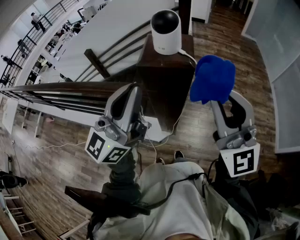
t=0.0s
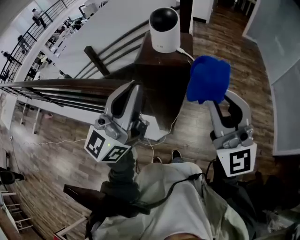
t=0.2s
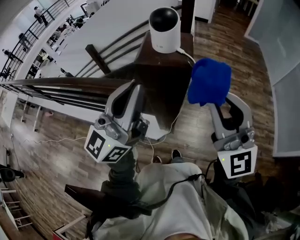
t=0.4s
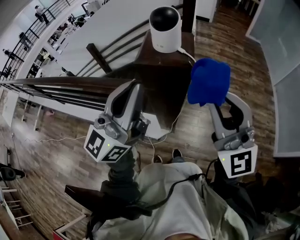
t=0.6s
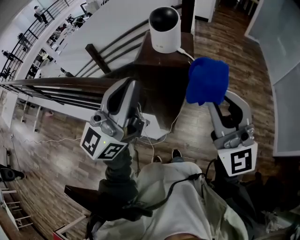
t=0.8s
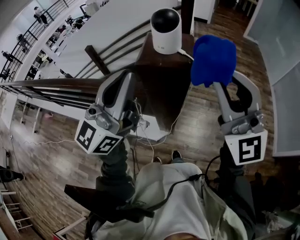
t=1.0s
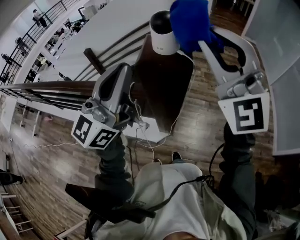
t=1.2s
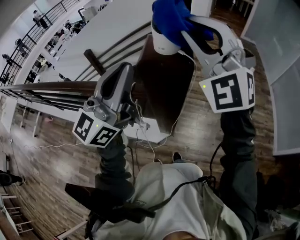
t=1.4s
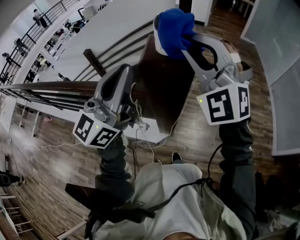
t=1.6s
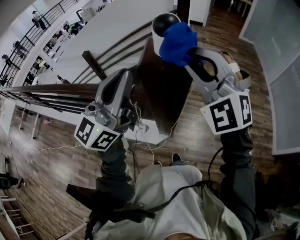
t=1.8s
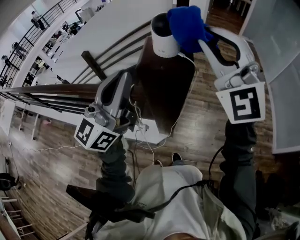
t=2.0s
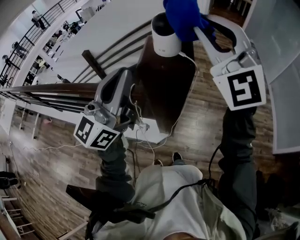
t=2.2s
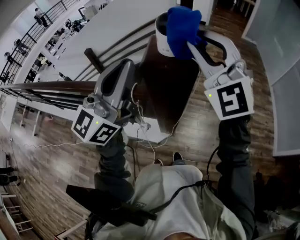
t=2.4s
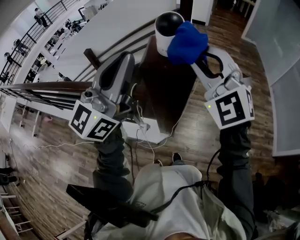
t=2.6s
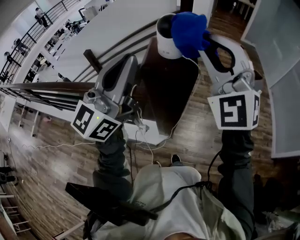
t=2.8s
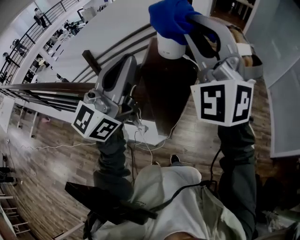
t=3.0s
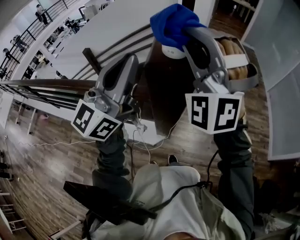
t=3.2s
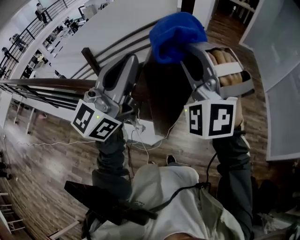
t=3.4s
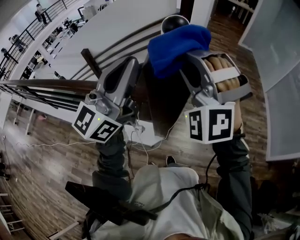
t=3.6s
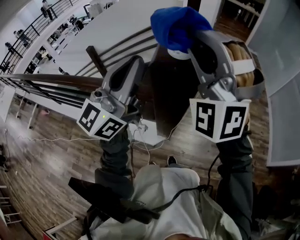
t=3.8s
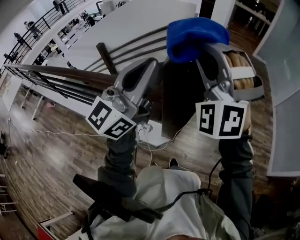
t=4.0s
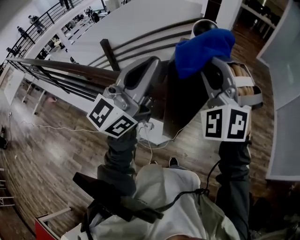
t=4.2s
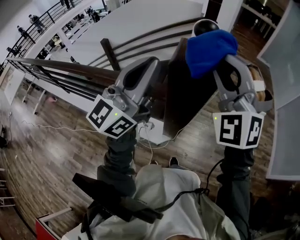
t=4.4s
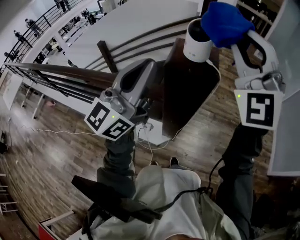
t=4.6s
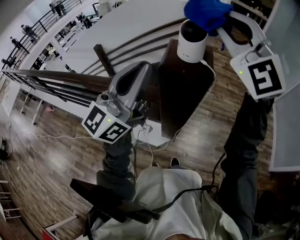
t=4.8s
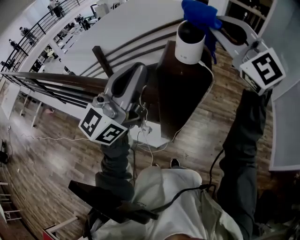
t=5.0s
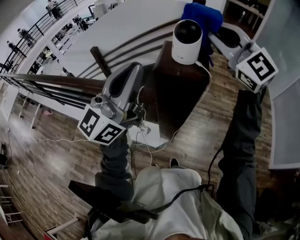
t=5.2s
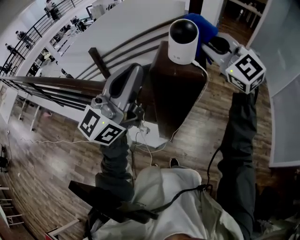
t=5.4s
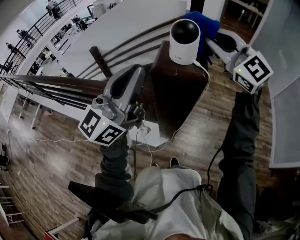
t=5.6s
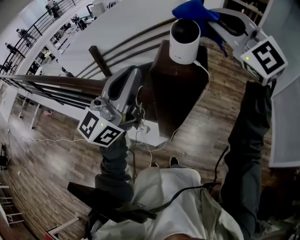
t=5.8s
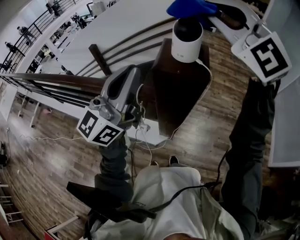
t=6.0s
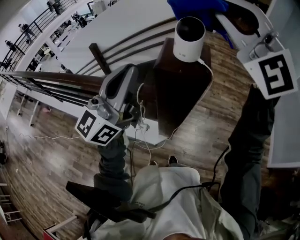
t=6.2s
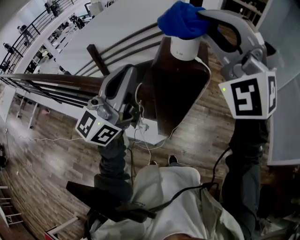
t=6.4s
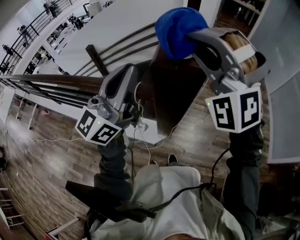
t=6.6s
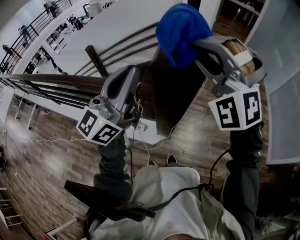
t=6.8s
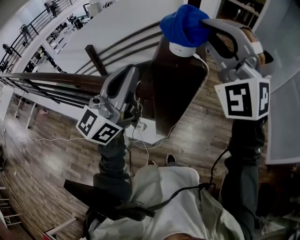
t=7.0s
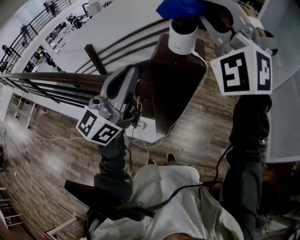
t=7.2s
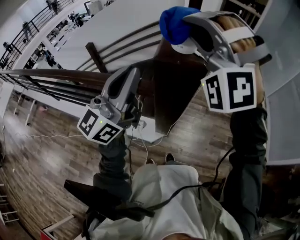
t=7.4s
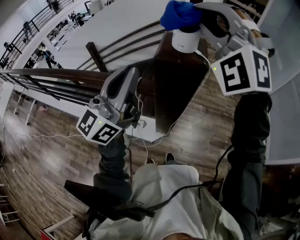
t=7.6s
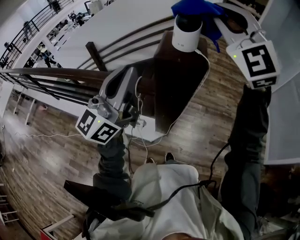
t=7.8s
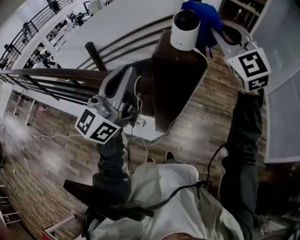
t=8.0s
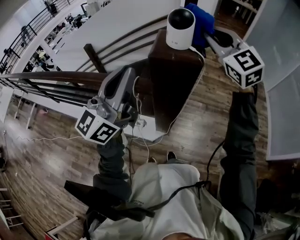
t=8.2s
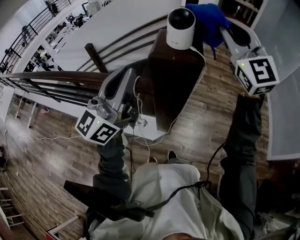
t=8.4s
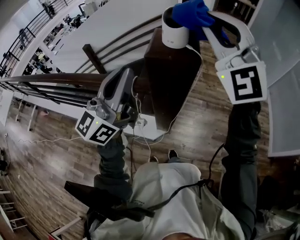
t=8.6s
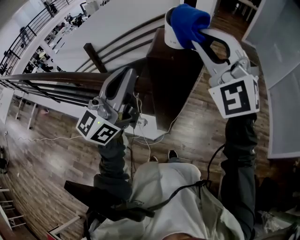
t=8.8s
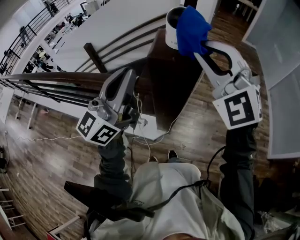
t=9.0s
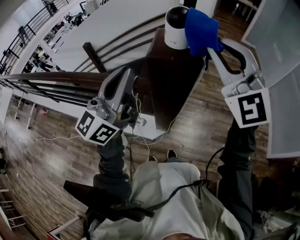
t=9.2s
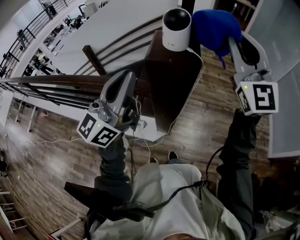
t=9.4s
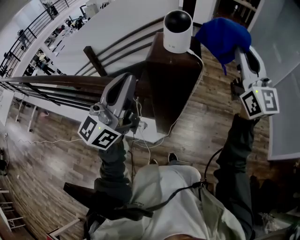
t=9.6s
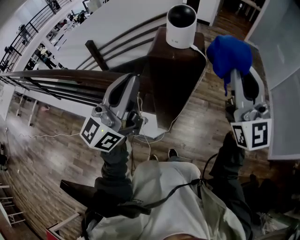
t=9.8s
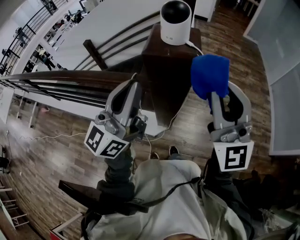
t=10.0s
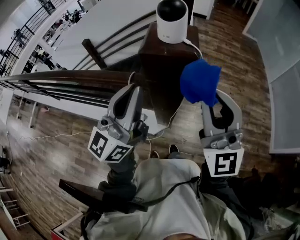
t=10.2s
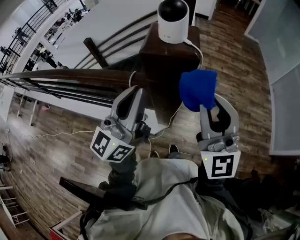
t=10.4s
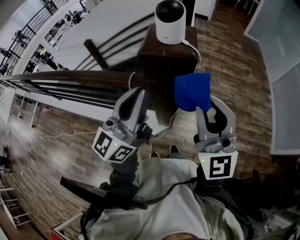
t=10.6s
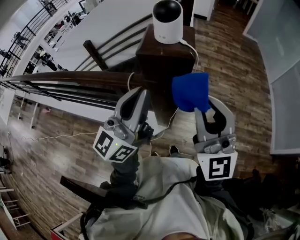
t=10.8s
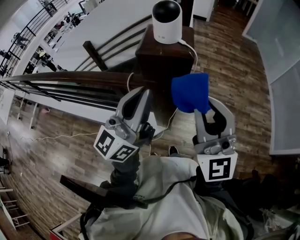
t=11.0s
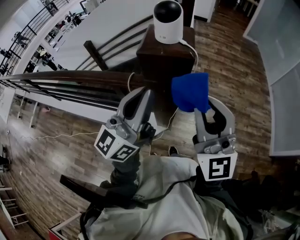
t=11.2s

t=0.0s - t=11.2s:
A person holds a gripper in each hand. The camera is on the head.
t=0.0s - t=1.6s: The right gripper goes approximately 15 cm forward and to the left, and swivels about 40 degrees. The left gripper changes place by roughly 5 cm.
t=1.6s - t=3.2s: The right gripper swings up and down, roughly 10 cm each way, with 2 reversals, and turns by approximately 20 degrees.
t=3.2s - t=4.8s: The right gripper swings up and down, about 10 cm each way, with 3 reversals, and swivels about 40 degrees.
t=4.8s - t=6.4s: The right gripper swings up and down, roughly 15 cm each way, with 2 reversals, and rotates roughly 30 degrees.
t=6.4s - t=8.0s: The right gripper swings up and down, roughly 10 cm each way, with 4 reversals, and changes its angle by about 40 degrees.
t=8.0s - t=9.6s: The right gripper heads to the right, covering roughly 10 cm, and swivels about 40 degrees.
t=9.6s - t=11.2s: The right gripper moves backward, to the left and downward, approximately 20 cm; the left gripper is displaced to the right by about 5 cm.

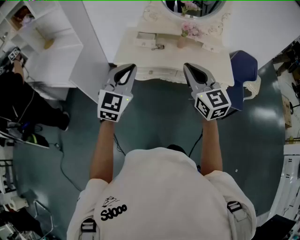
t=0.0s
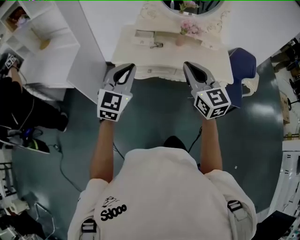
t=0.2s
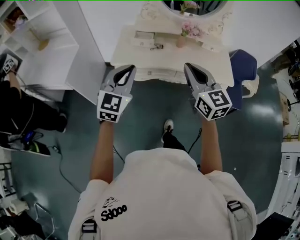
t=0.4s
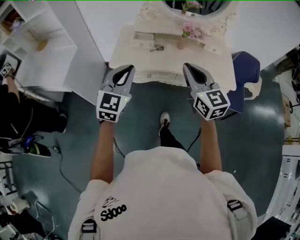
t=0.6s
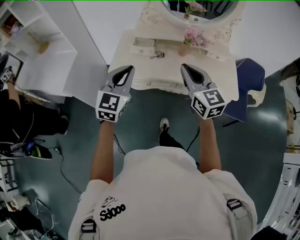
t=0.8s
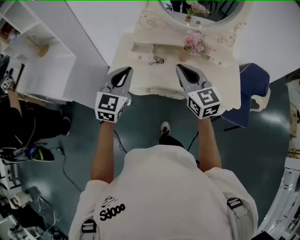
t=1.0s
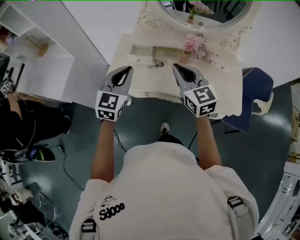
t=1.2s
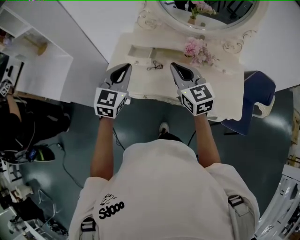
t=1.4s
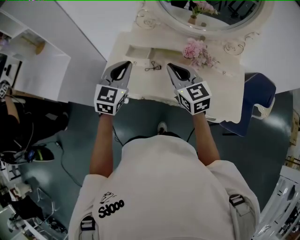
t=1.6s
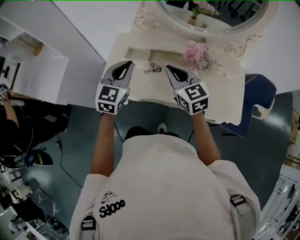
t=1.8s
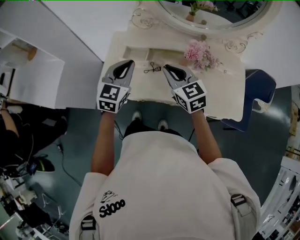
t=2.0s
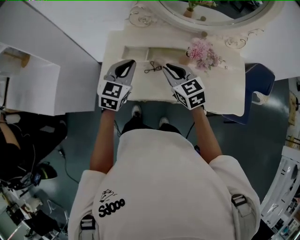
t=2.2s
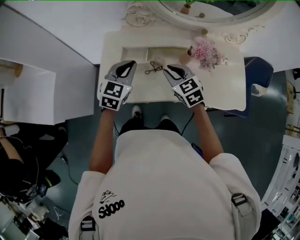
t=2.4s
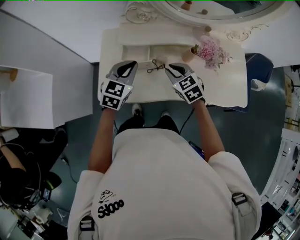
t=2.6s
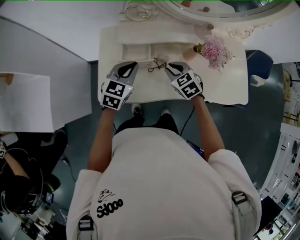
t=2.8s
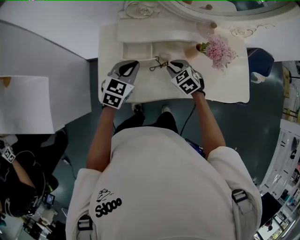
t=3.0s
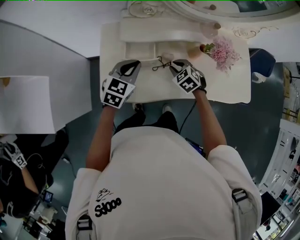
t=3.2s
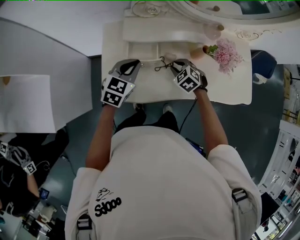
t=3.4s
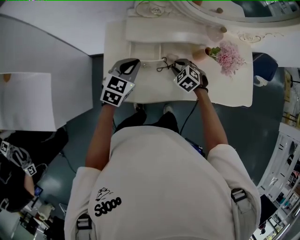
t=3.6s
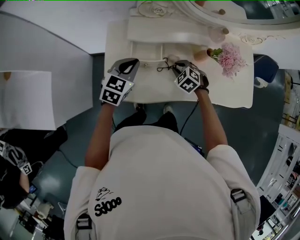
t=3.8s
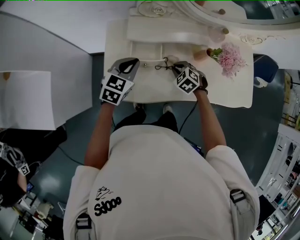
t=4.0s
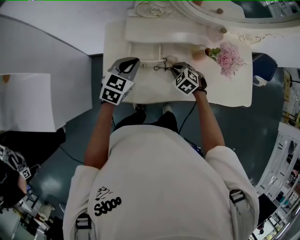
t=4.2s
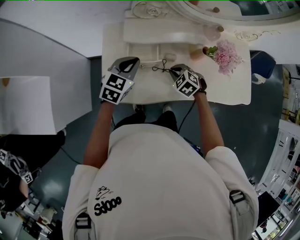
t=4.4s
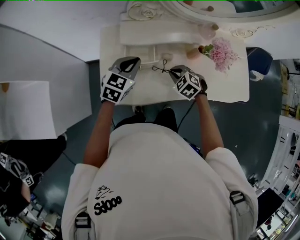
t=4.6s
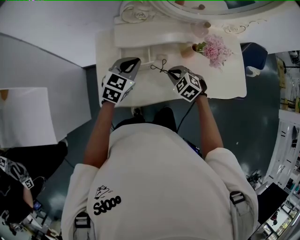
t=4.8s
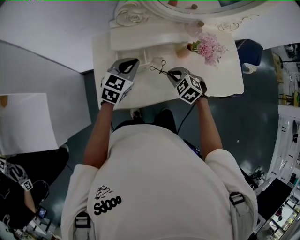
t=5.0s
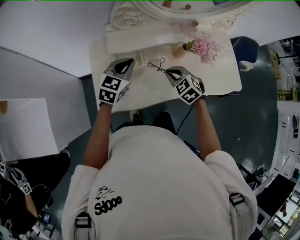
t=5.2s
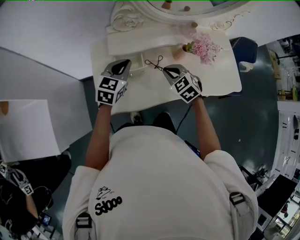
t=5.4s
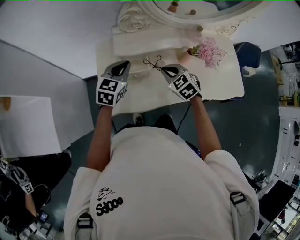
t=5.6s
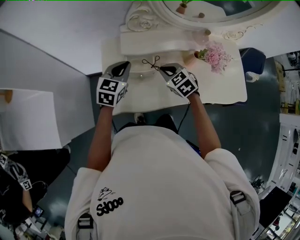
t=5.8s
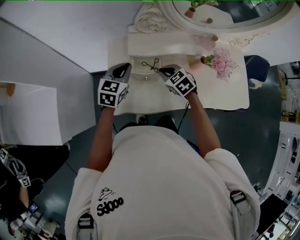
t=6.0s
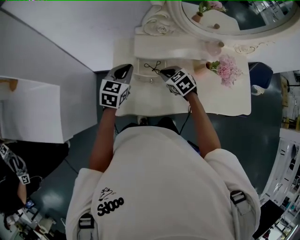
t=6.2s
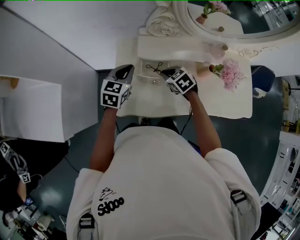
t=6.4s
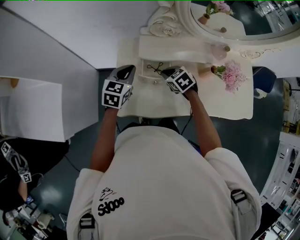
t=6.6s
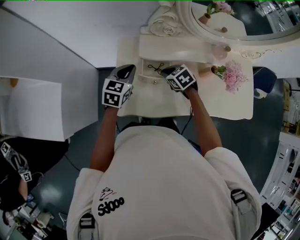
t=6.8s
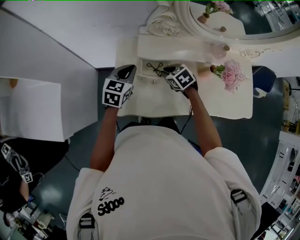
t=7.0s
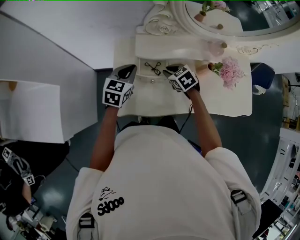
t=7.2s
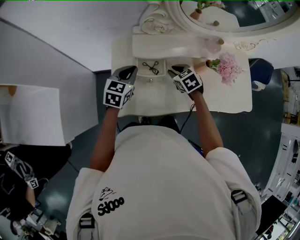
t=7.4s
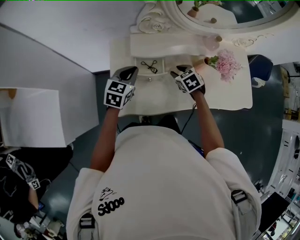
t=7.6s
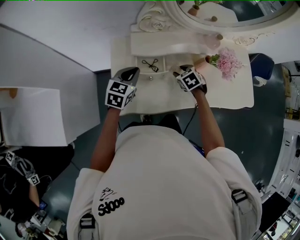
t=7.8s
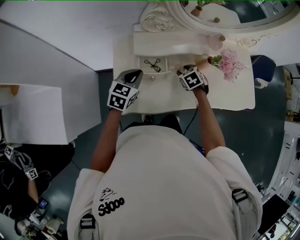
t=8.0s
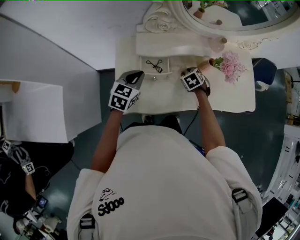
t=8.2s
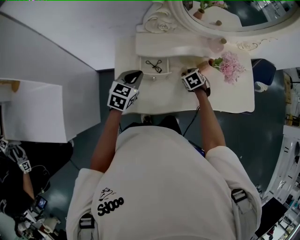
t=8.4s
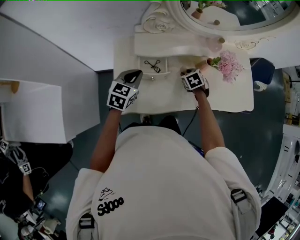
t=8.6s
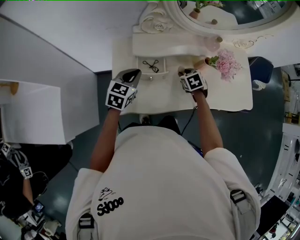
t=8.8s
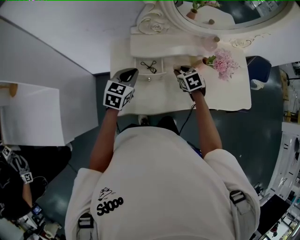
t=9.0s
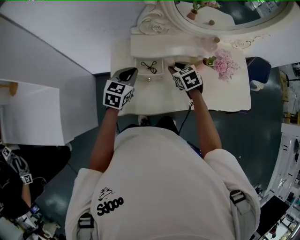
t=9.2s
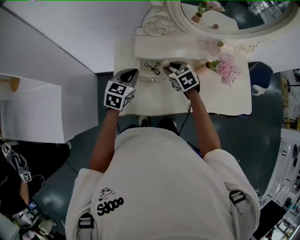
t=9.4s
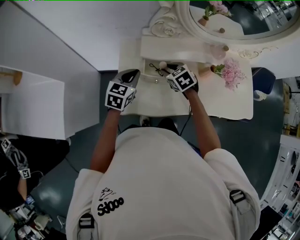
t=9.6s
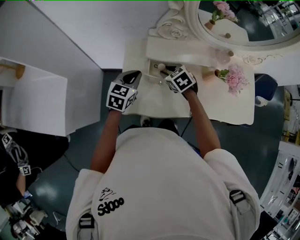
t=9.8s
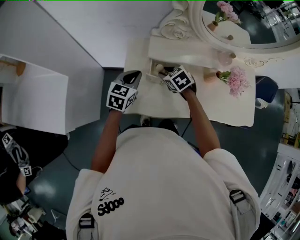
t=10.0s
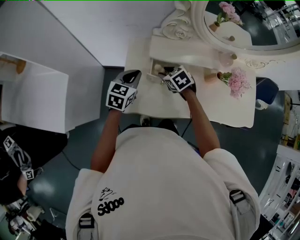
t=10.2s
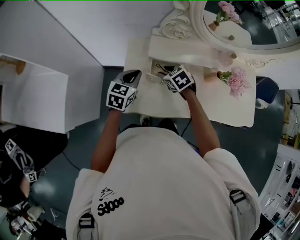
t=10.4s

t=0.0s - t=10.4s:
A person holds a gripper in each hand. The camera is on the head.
t=0.0s - t=1.4s: The two grippers go approximately 30 cm forward.
t=1.4s - t=3.0s: The two grippers go some 25 cm downward and forward. The right gripper angles its fingers downward, by some 40 degrees; the left gripper changes its angle by about 30 degrees.
t=3.0s - t=4.4s: The grippers stay close to where they were, moving slightly.
t=4.4s - t=6.0s: The right gripper is displaced to the left and upward by about 10 cm; the left gripper shifts about 5 cm to the left.
t=6.0s - t=7.4s: The right gripper moves some 5 cm.
t=7.4s - t=9.0s: The right gripper shifts roughly 5 cm to the right.
t=9.0s - t=10.4s: The right gripper shifts some 15 cm to the left, and changes its angle by some 20 degrees, while the left gripper is displaced to the left by roughly 5 cm.

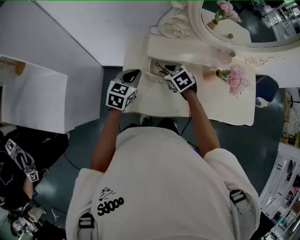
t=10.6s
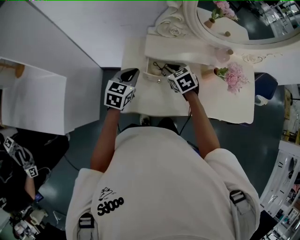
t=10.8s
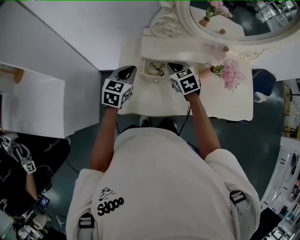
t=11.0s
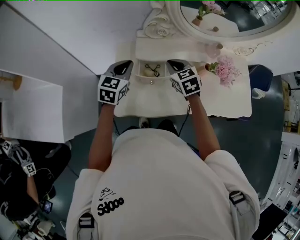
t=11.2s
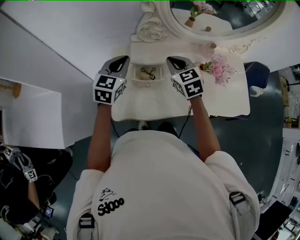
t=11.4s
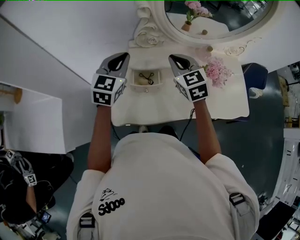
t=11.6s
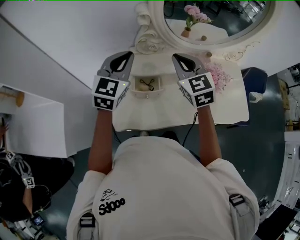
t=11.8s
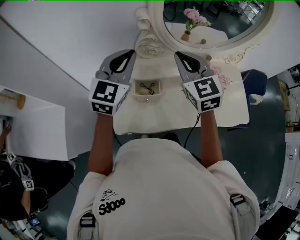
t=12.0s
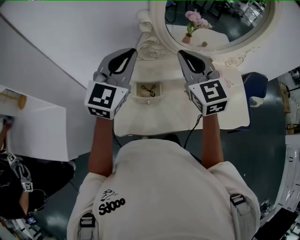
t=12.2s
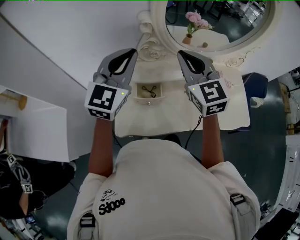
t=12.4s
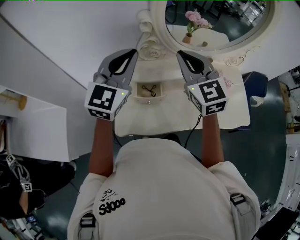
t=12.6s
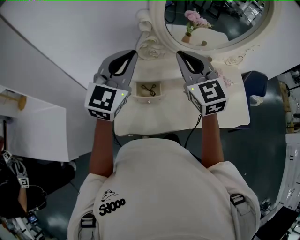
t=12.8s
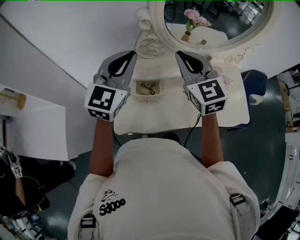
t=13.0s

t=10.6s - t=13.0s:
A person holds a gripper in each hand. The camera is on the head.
t=10.6s - t=11.8s: Both grippers travel together upward, about 25 cm. The left gripper swivels some 30 degrees. Meanwhile the right gripper tilts its fingers approximately 40 degrees upward, and closes its fingers.
t=11.8s - t=13.0s: Both grippers move upward, approximately 5 cm.
